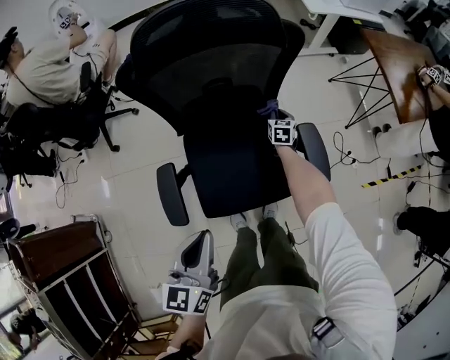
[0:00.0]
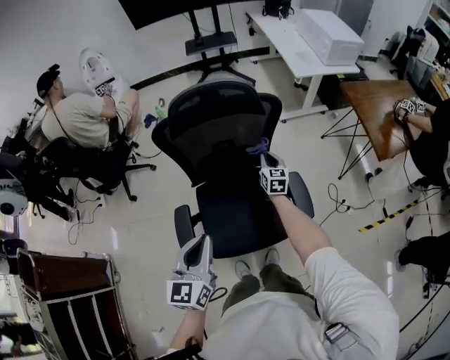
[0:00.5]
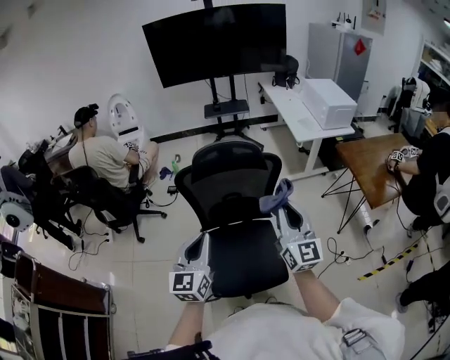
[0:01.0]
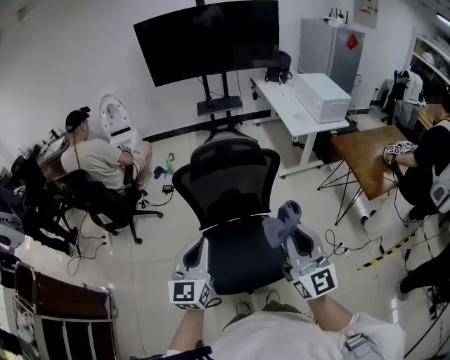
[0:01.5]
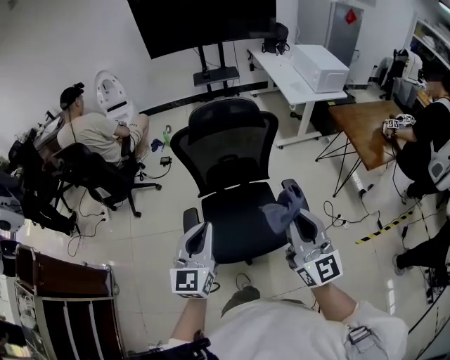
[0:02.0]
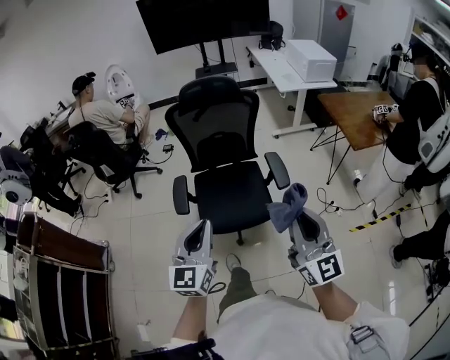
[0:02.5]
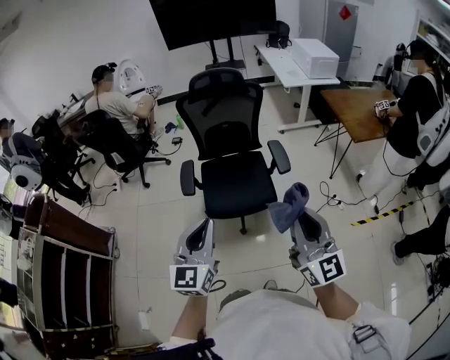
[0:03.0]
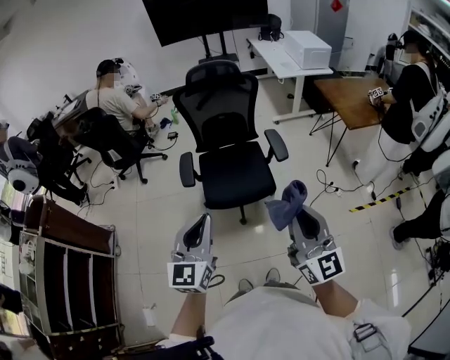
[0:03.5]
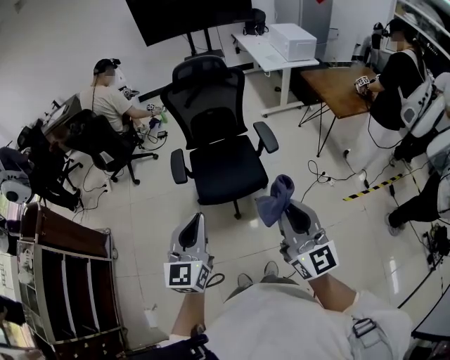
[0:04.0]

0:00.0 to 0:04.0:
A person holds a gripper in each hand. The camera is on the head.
0:00.0 to 0:02.0: The right gripper heads backward and upward, covering approximately 90 cm, and tilts its fingers roughly 70 degrees upward, while the left gripper shifts approximately 35 cm backward, and turns by some 30 degrees.
0:02.0 to 0:04.0: The two grippers go about 35 cm backward.

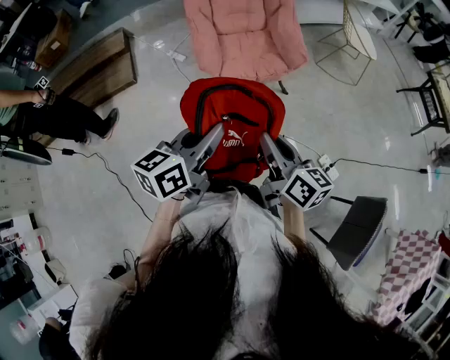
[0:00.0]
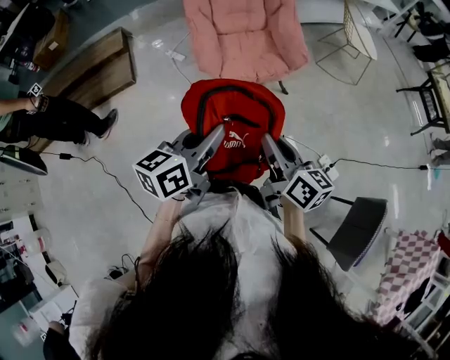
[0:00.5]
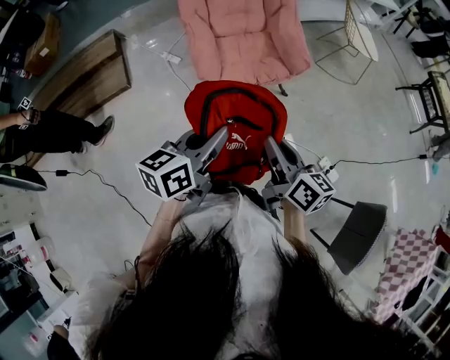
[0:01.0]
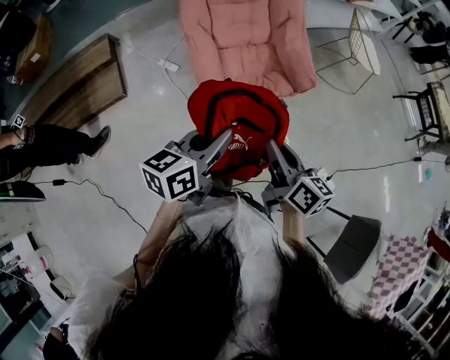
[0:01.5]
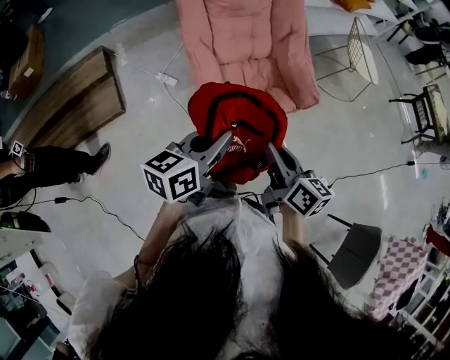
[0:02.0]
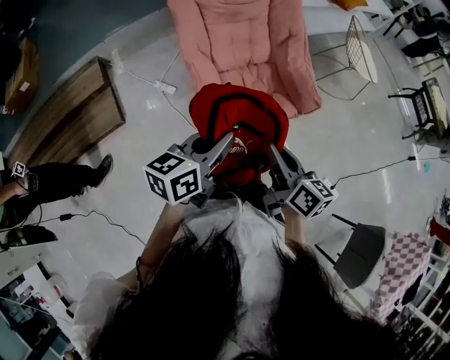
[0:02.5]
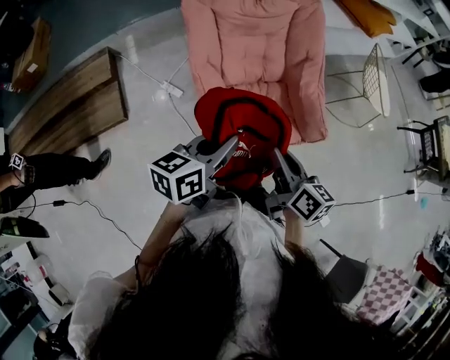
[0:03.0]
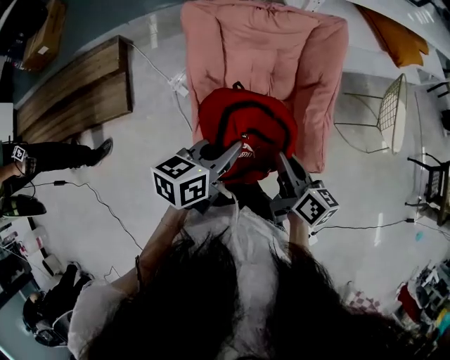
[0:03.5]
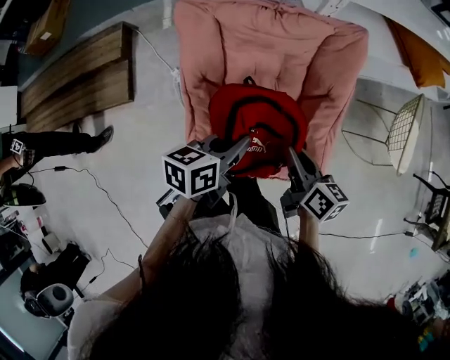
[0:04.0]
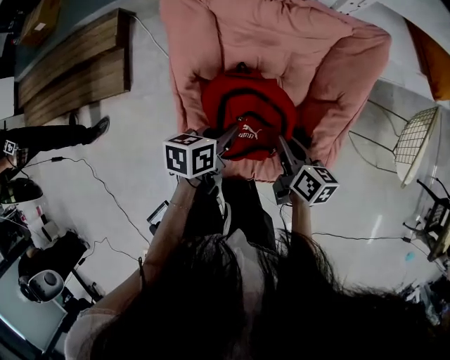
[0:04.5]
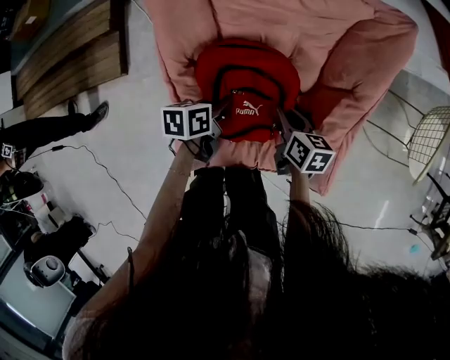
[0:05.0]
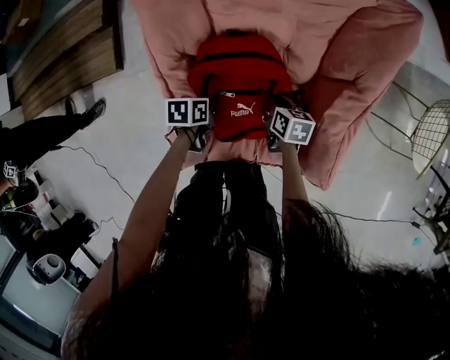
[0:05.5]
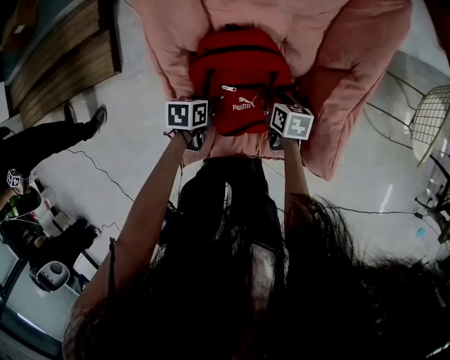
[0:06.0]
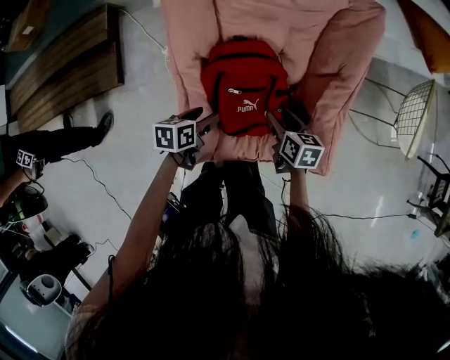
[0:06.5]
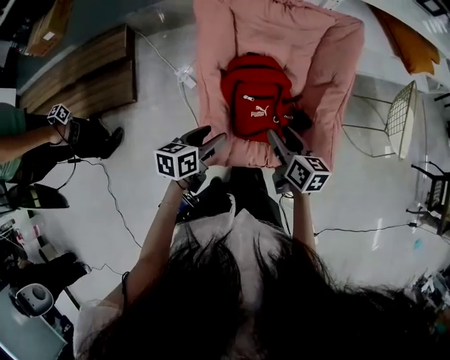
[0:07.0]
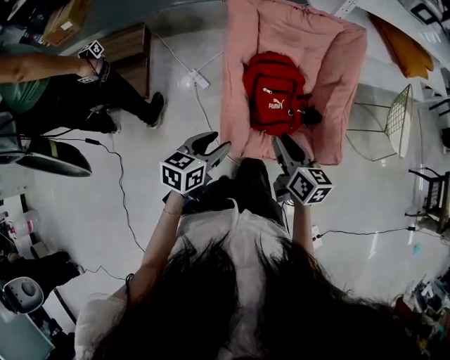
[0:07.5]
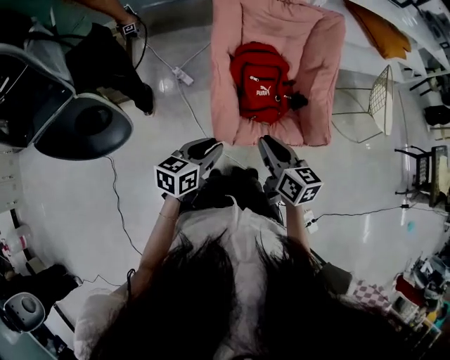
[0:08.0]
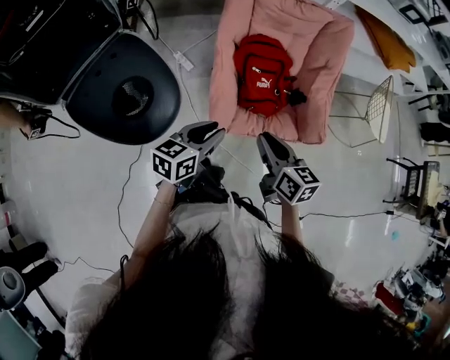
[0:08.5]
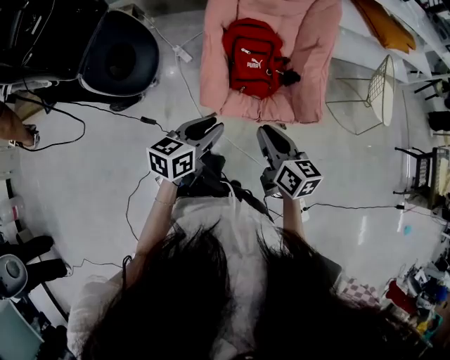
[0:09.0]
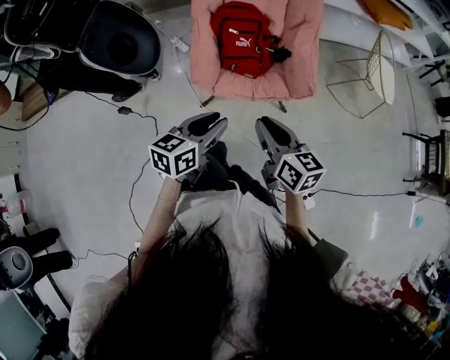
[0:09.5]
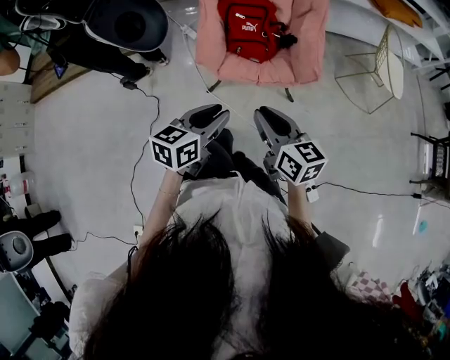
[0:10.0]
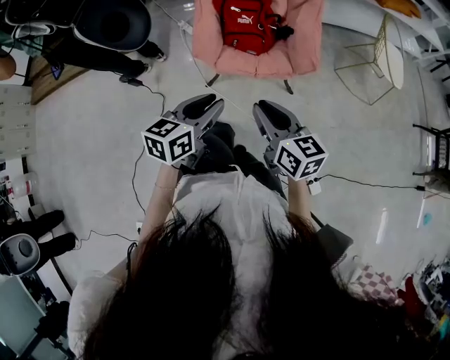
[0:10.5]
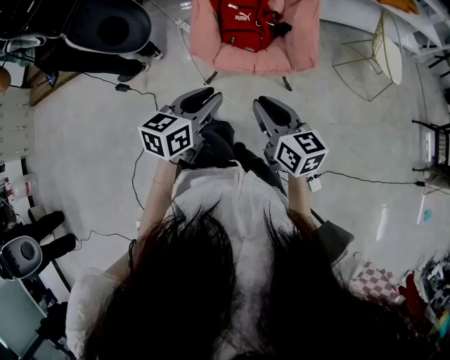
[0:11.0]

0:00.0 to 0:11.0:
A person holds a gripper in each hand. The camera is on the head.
0:00.0 to 0:02.0: Both grippers move forward and to the left, some 30 cm.
0:02.0 to 0:03.5: The two grippers go about 30 cm forward.
0:03.5 to 0:05.5: The left gripper moves downward, about 40 cm, and angles its fingers downward, by roughly 40 degrees; the right gripper moves downward and forward, about 40 cm, and swivels roughly 30 degrees.
0:05.5 to 0:07.5: The grippers both shift upward and backward by approximately 40 cm. The right gripper swivels some 30 degrees, and opens and closes again, while the left gripper angles its fingers upward, by approximately 30 degrees, and opens up.
0:07.5 to 0:09.0: The left gripper heads backward and to the right, covering roughly 15 cm, and closes up; the right gripper shifts some 15 cm backward.
0:09.0 to 0:11.0: The two grippers go some 20 cm backward and to the right.

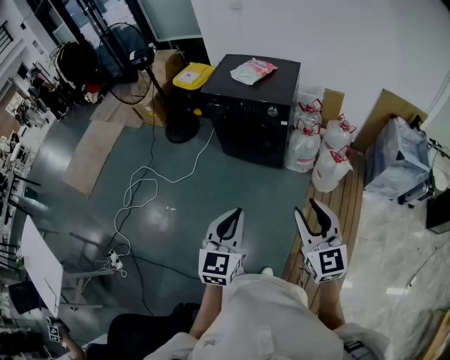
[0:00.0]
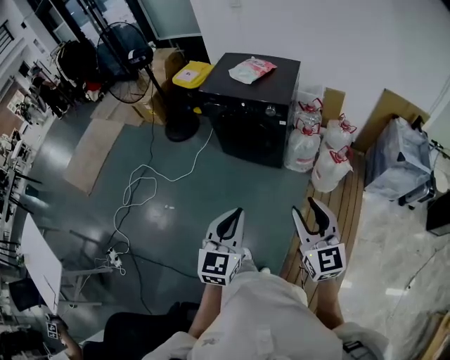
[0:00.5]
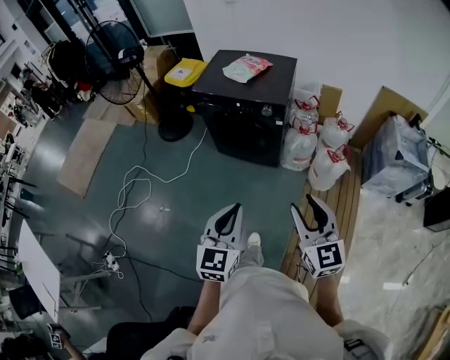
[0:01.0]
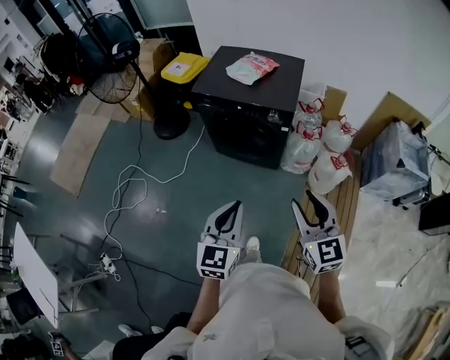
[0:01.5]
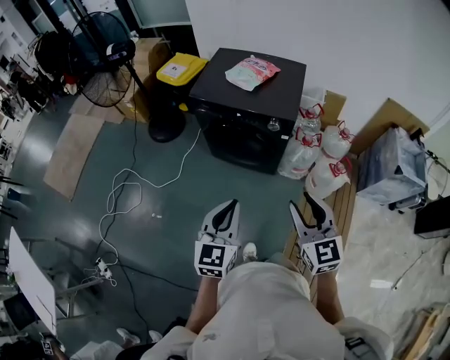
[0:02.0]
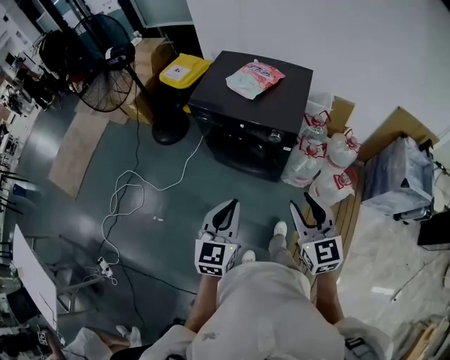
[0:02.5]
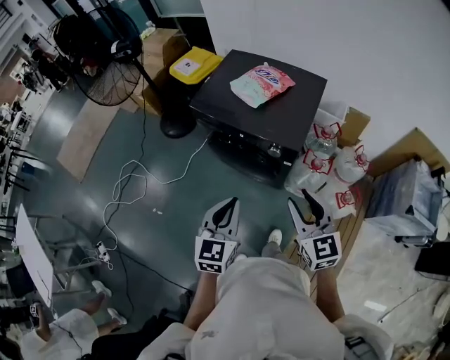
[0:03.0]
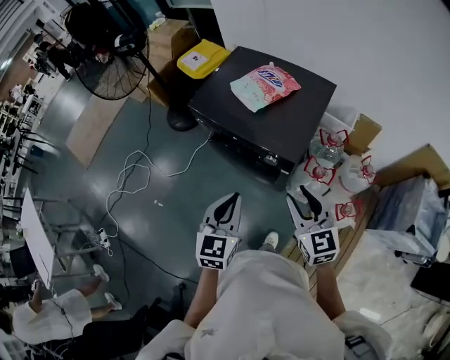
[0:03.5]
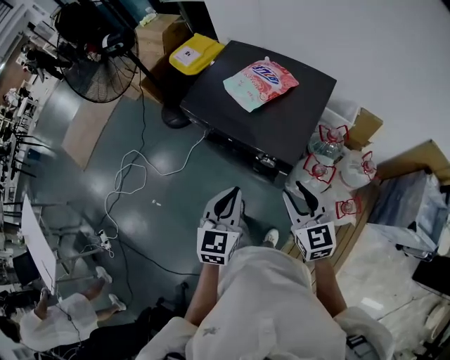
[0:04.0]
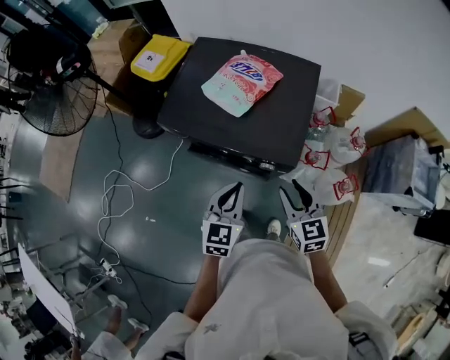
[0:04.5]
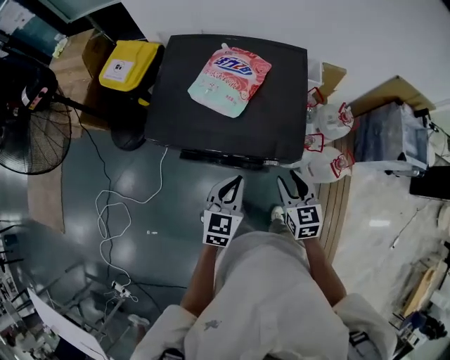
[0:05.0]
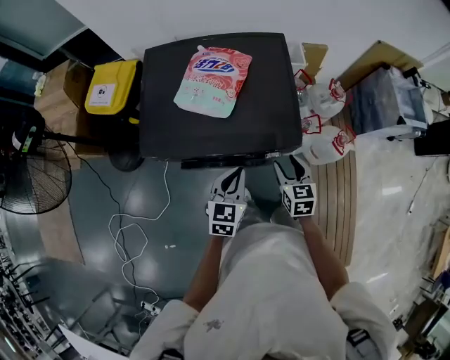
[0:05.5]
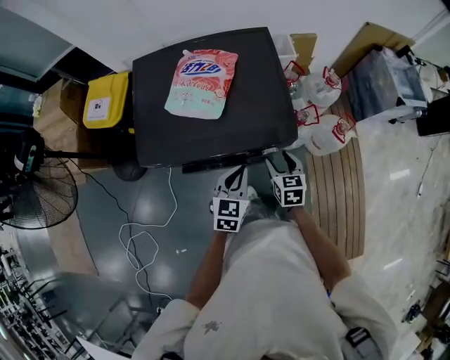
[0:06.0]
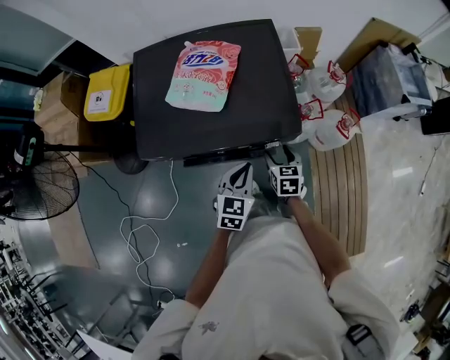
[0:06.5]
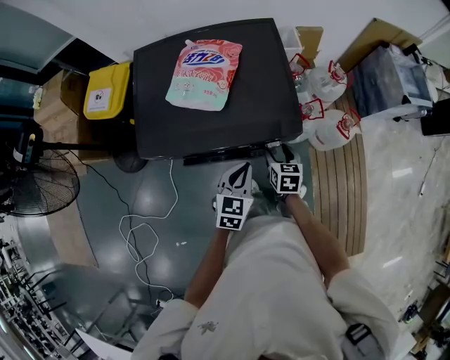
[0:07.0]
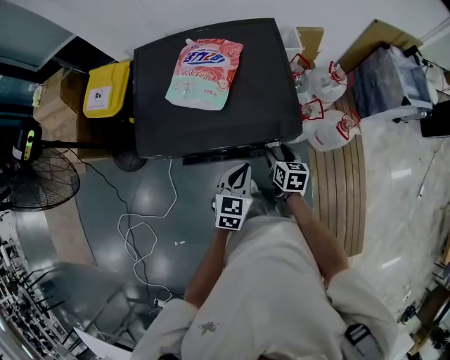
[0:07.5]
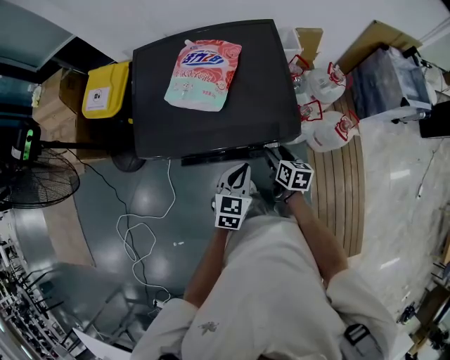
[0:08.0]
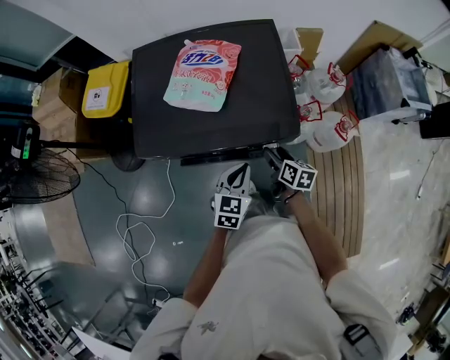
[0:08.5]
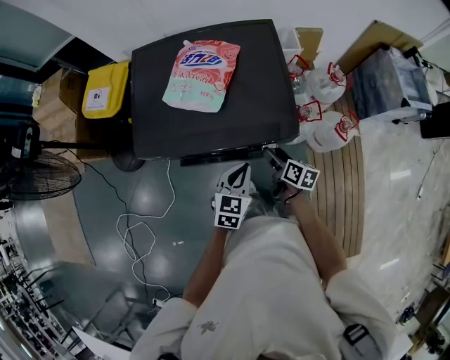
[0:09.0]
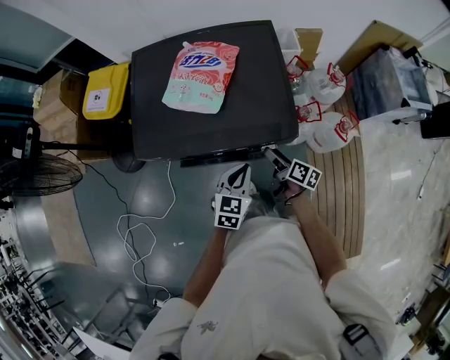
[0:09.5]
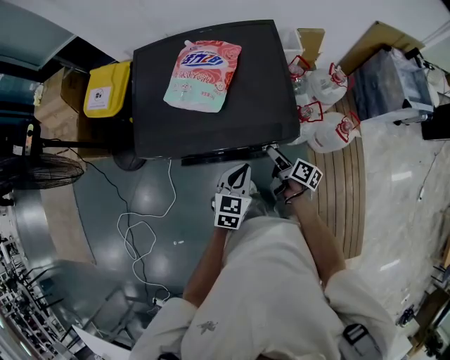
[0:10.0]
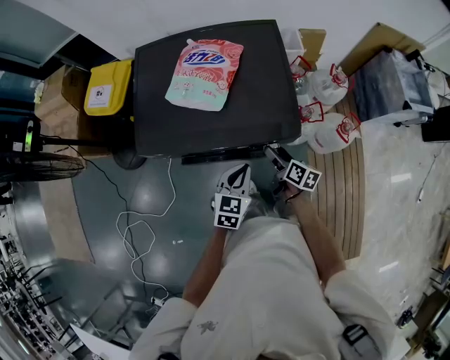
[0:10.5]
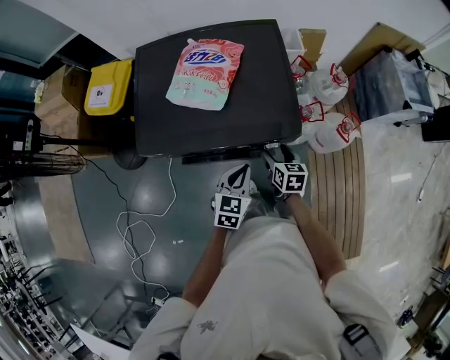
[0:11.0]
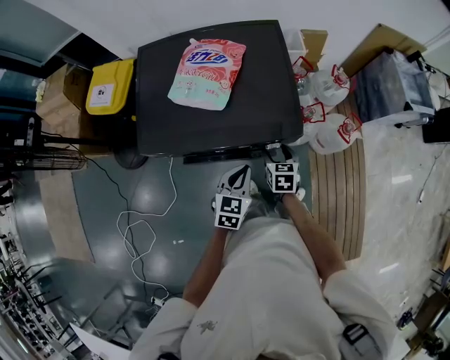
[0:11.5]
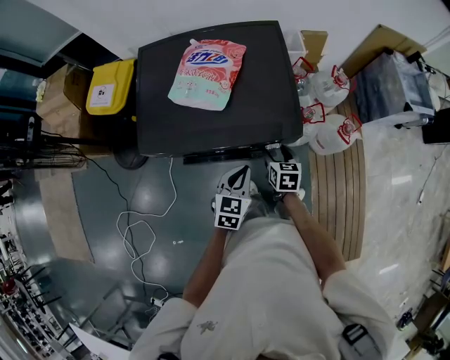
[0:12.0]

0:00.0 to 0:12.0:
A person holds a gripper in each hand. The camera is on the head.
0:00.0 to 0:02.0: Both grippers travel together forward, approximately 20 cm.
0:02.0 to 0:04.0: Both grippers travel together forward and to the right, roughly 35 cm.
0:04.0 to 0:06.0: Both grippers travel together downward, approximately 20 cm. The right gripper turns by approximately 50 degrees, while the left gripper turns by roughly 40 degrees.
0:06.0 to 0:08.0: The right gripper turns by approximately 20 degrees.
0:08.0 to 0:10.0: The right gripper swivels about 40 degrees.
0:10.0 to 0:12.0: The right gripper twists roughly 50 degrees counterclockwise, seen from behind.
